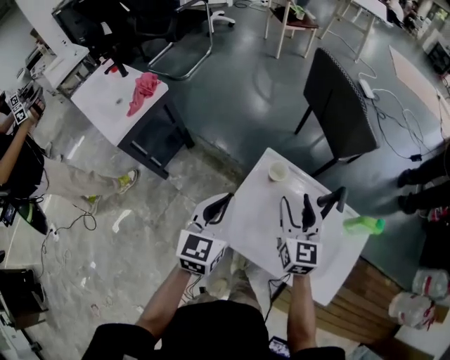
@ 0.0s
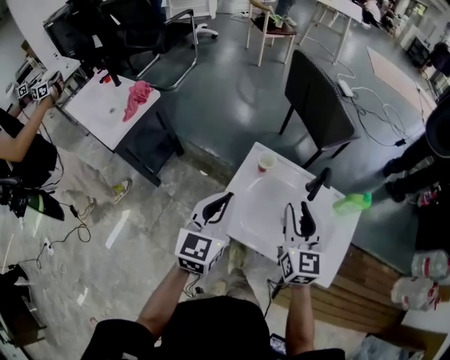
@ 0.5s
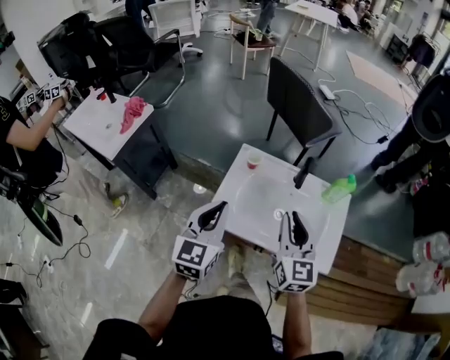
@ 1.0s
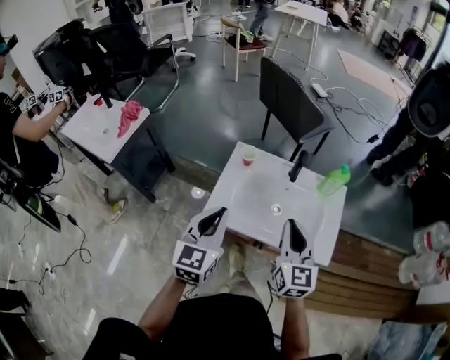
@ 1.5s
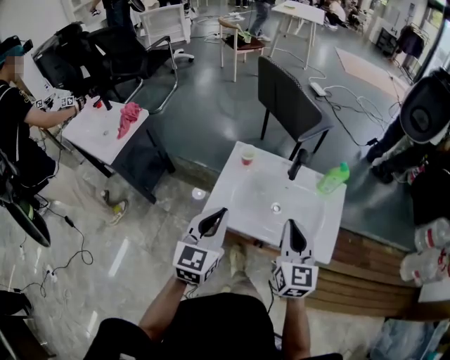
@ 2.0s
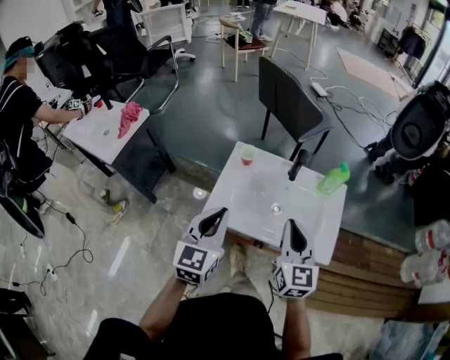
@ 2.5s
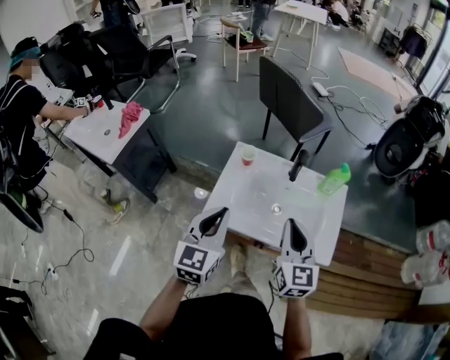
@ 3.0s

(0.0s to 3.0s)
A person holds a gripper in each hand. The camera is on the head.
0.0s - 1.5s: Both grippers move backward, about 20 cm. The right gripper closes its fingers.
1.5s - 3.0s: The grippers stay close to where they were, moving slightly.

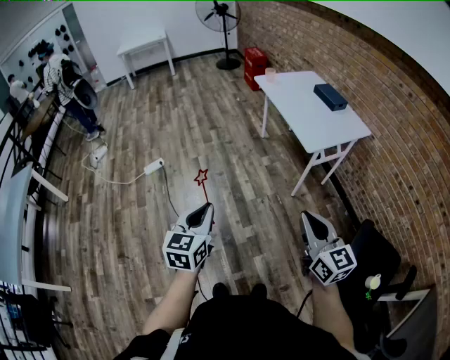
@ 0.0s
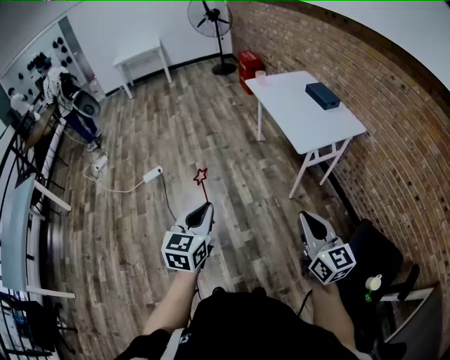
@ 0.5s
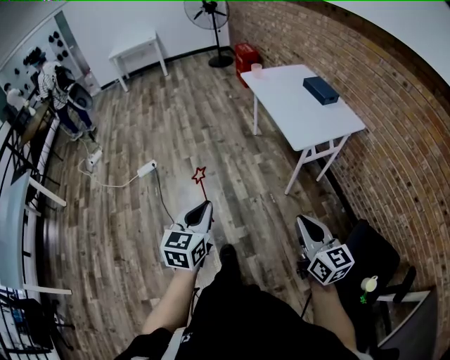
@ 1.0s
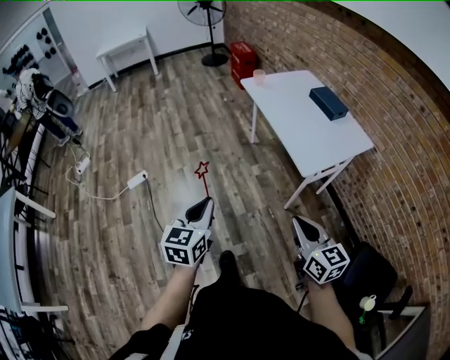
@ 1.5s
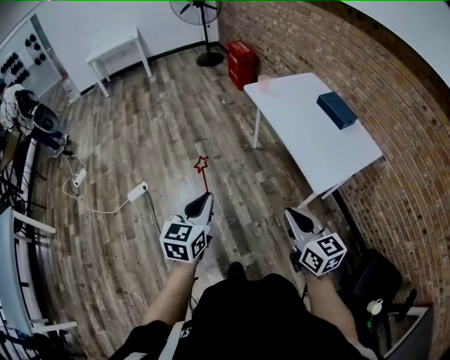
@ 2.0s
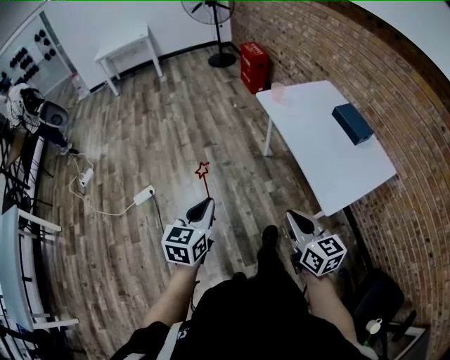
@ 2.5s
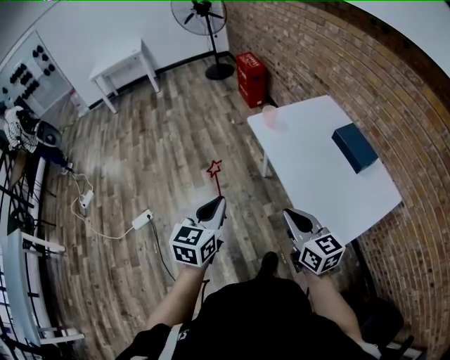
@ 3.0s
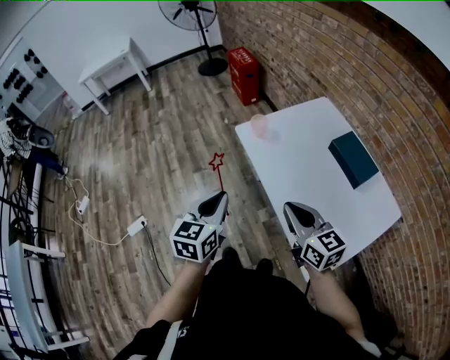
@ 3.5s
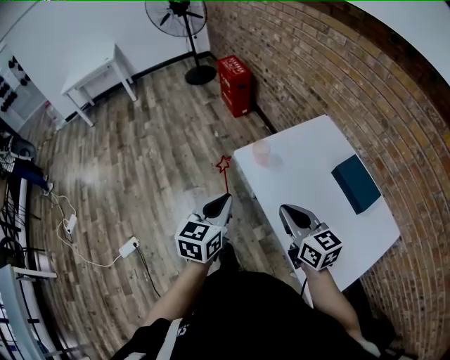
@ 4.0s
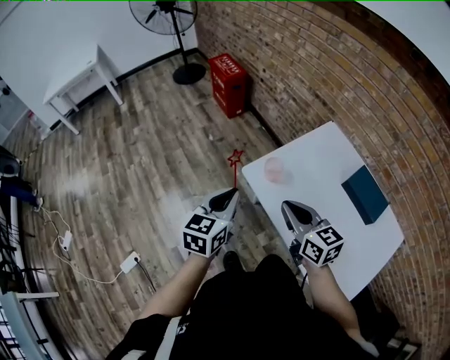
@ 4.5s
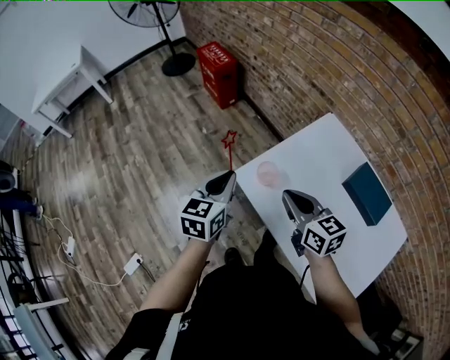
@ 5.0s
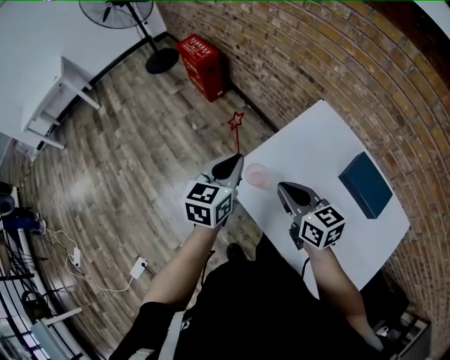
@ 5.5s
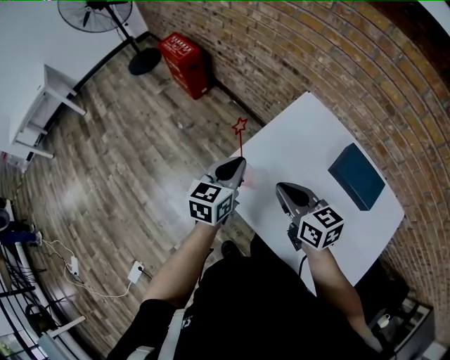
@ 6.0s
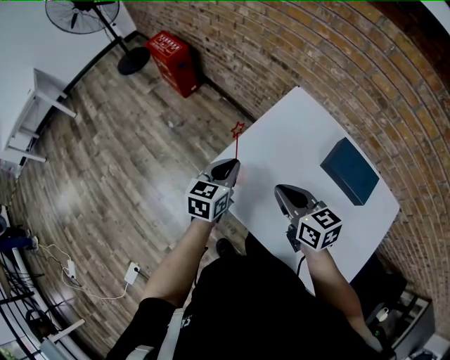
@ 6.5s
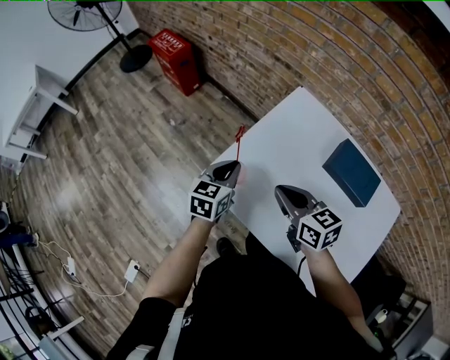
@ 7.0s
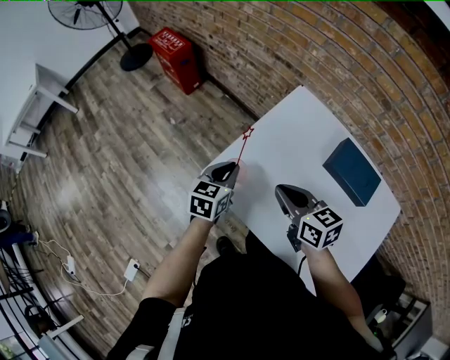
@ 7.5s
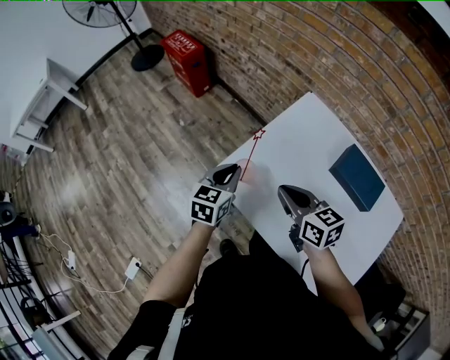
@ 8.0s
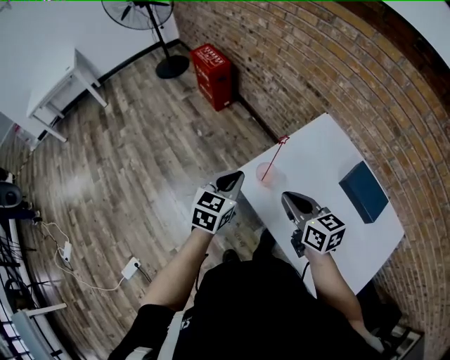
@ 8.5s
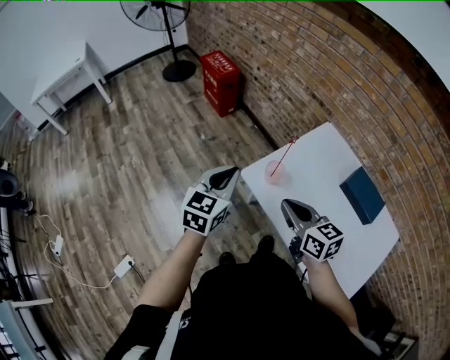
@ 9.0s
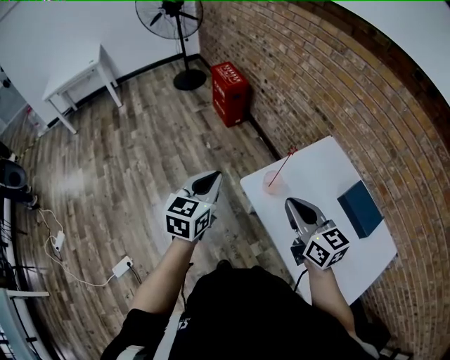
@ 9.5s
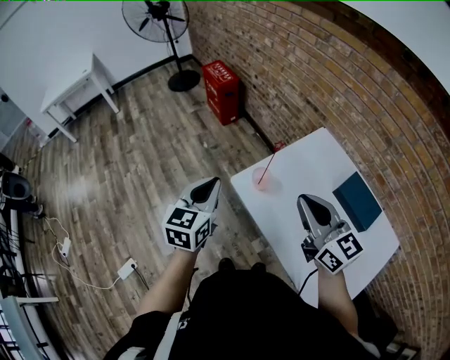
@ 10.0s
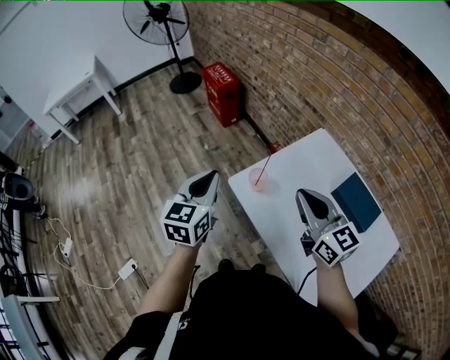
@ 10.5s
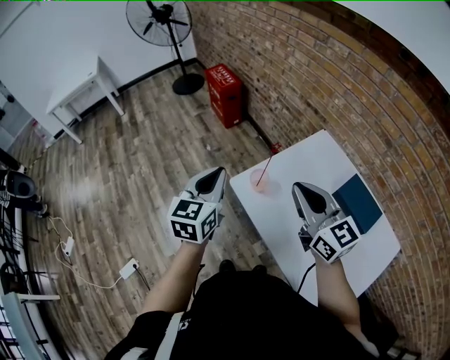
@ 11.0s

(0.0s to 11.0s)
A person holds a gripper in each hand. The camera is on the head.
0.0s - 2.0s: The two grippers go about 35 cm forward.
2.0s - 3.5s: The two grippers travel together, forward and to the right, approximately 40 cm.
3.5s - 5.5s: The grippers both shift forward by approximately 40 cm. The left gripper rotates approximately 20 degrees.
5.5s - 7.5s: The left gripper heads downward and to the right, covering roughly 15 cm. Meanwhile the right gripper shifts approximately 5 cm to the right.
7.5s - 9.0s: The left gripper is displaced to the left, upward and backward by roughly 25 cm. The right gripper is displaced to the left and backward by some 15 cm.
9.0s - 11.0s: The right gripper travels upward and to the right by approximately 15 cm, and swivels roughly 20 degrees. The left gripper shifts some 5 cm upward.

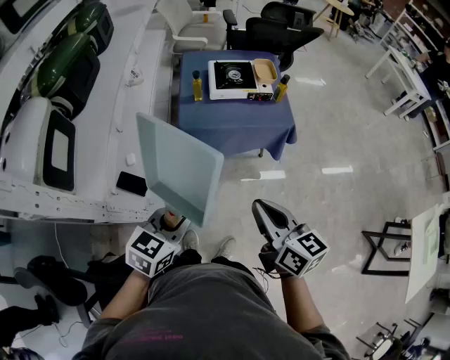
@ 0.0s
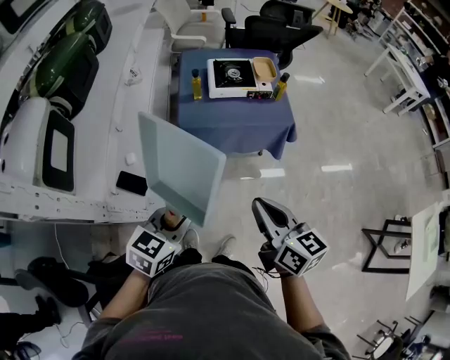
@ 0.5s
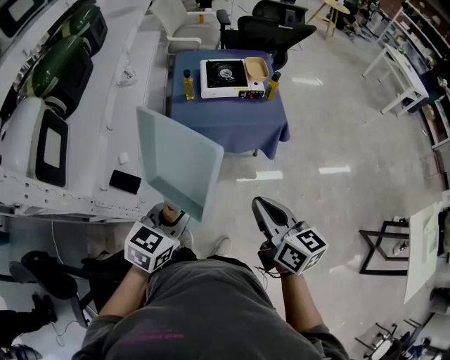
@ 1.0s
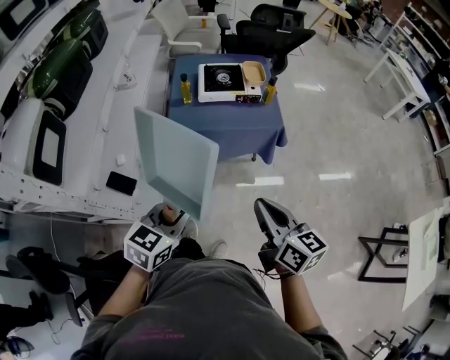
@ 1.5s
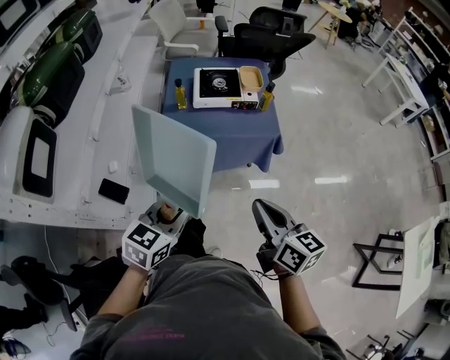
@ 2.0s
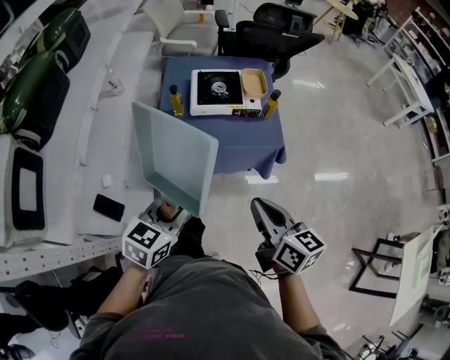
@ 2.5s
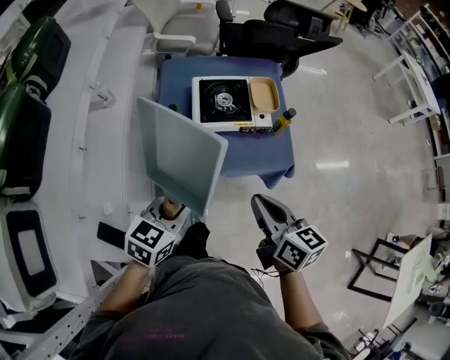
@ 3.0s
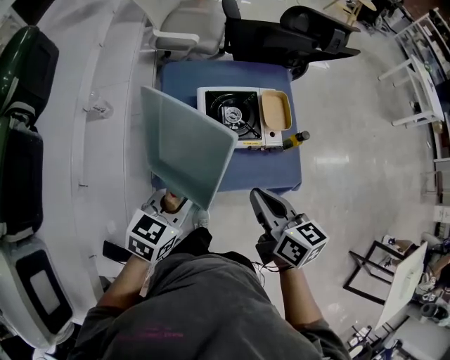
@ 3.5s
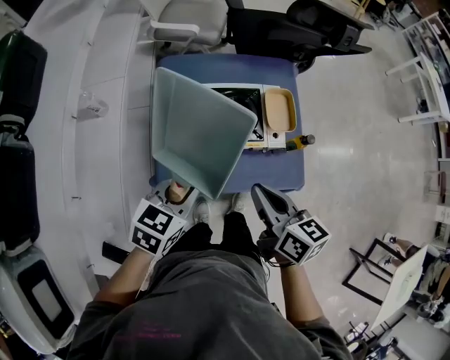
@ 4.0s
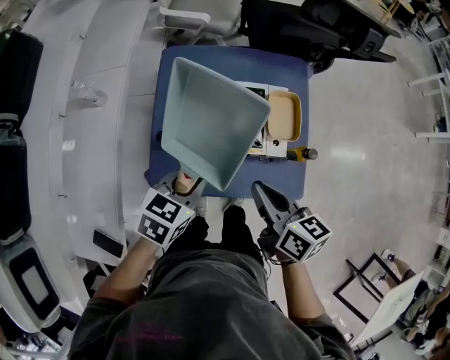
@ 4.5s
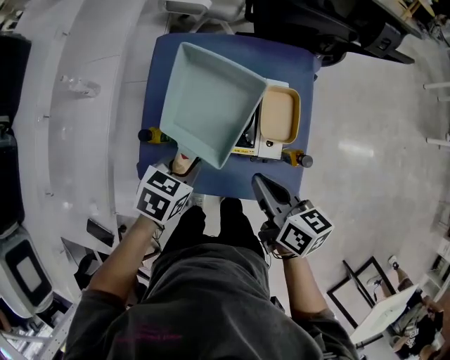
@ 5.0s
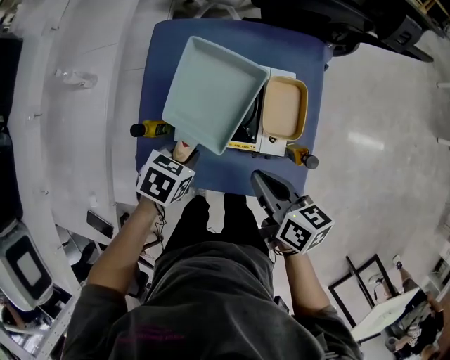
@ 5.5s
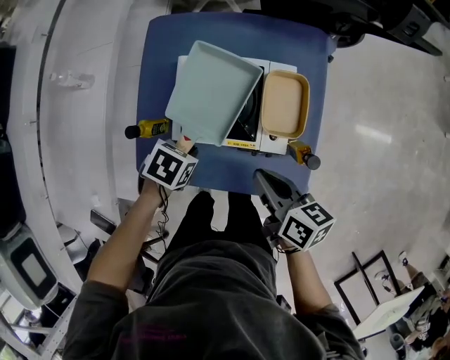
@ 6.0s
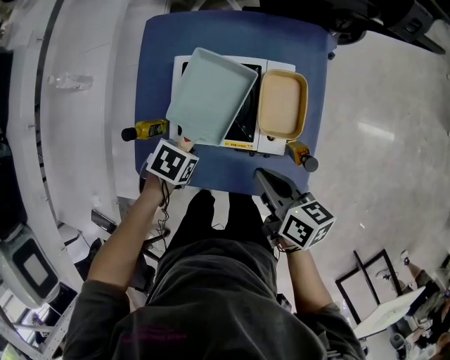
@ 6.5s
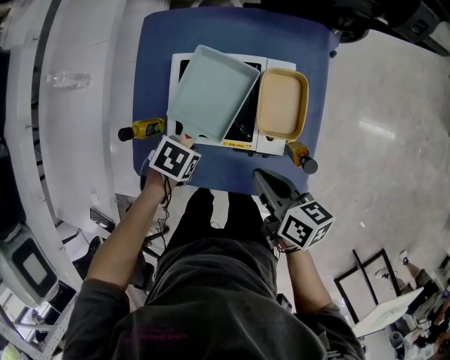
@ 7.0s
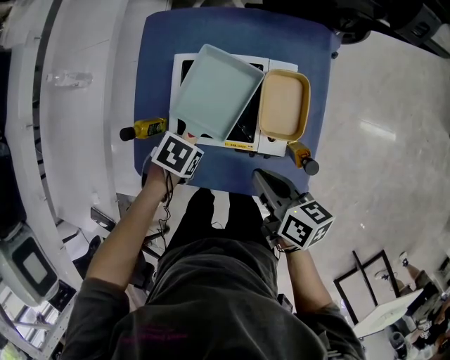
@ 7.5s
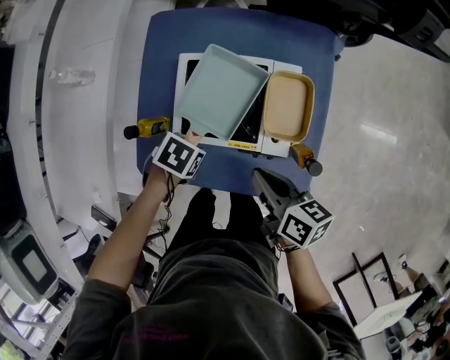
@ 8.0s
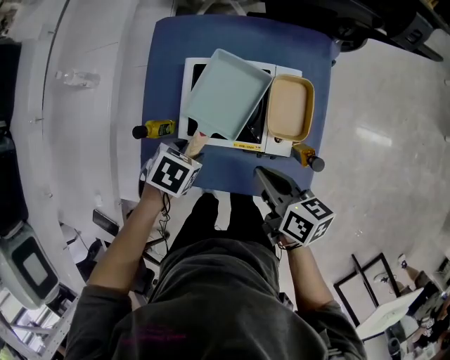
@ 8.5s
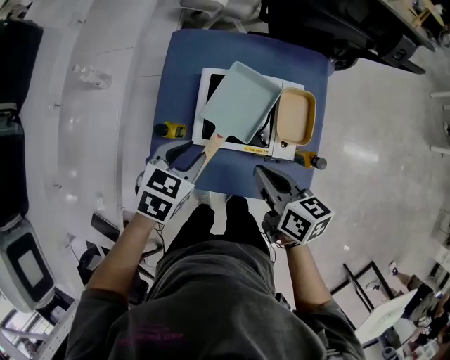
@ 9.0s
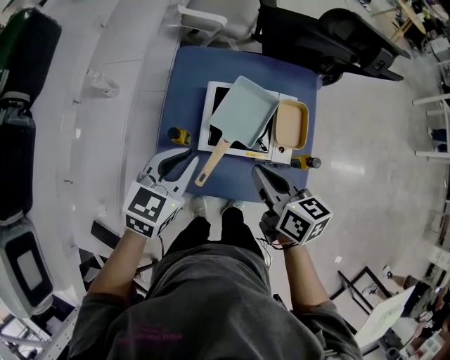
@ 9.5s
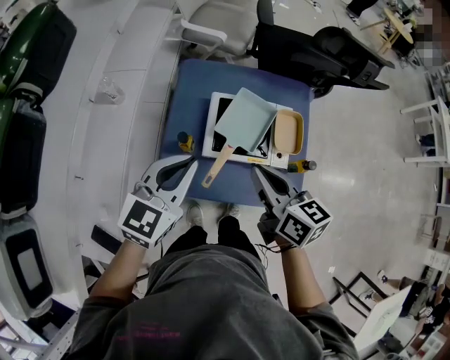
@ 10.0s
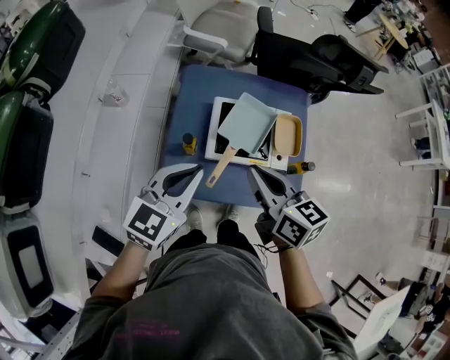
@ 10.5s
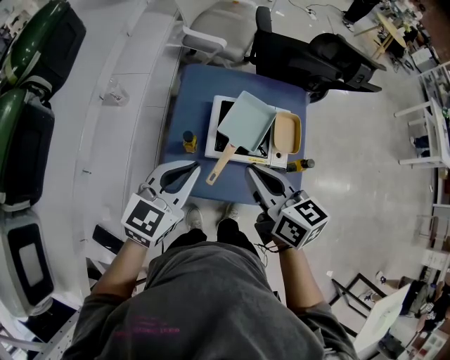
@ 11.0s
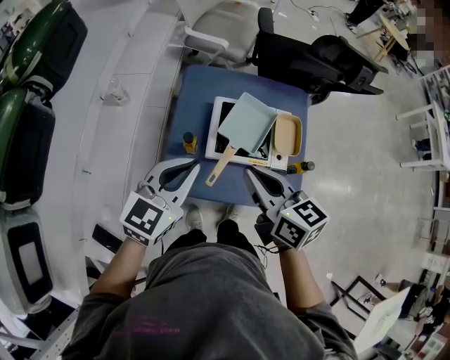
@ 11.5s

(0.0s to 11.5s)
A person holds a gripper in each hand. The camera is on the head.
0.0s - 2.0s: The two grippers go approximately 10 cm to the right and forward.
2.0s - 4.0s: The pair of grippers is taken forward, about 40 cm.
4.0s - 6.0s: The grippers both shift downward by about 20 cm. The left gripper angles its fingers downward, by approximately 40 degrees, while the right gripper turns by roughly 20 degrees.
6.0s - 7.5s: The grippers make only small movements.
7.5s - 9.5s: The right gripper travels upward by approximately 15 cm, while the left gripper travels upward by about 25 cm, angles its fingers upward, by approximately 50 degrees, and opens, then closes again.
9.5s - 11.5s: The left gripper goes some 10 cm upward. The right gripper heads upward and to the left, covering approximately 10 cm.

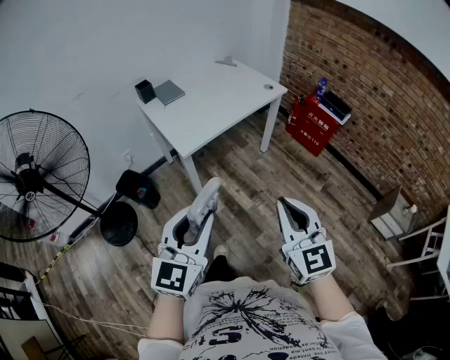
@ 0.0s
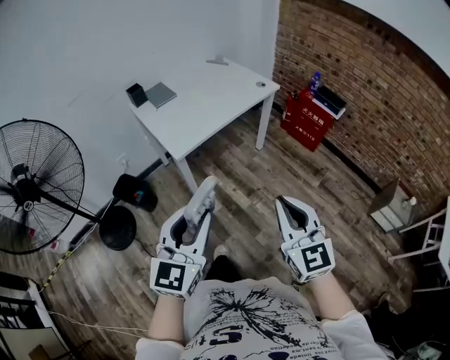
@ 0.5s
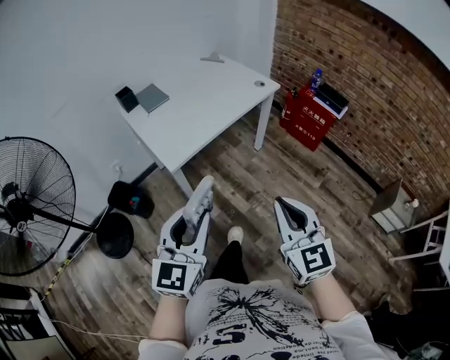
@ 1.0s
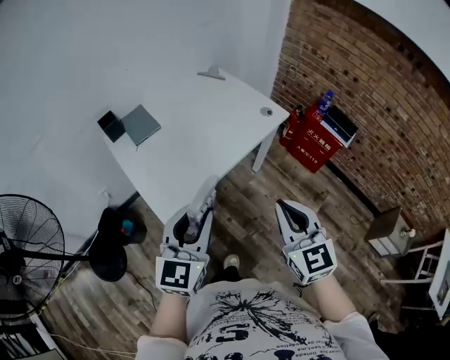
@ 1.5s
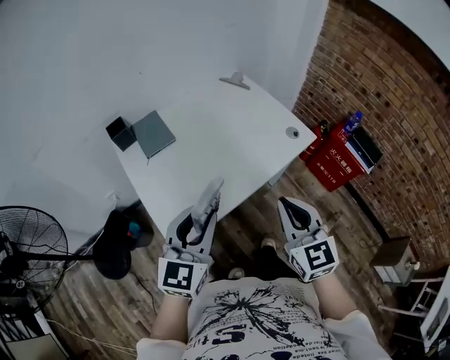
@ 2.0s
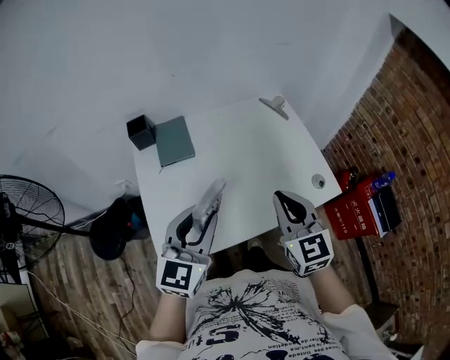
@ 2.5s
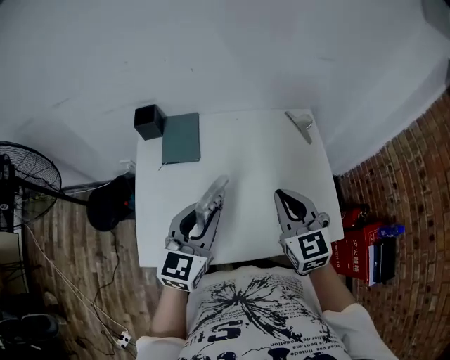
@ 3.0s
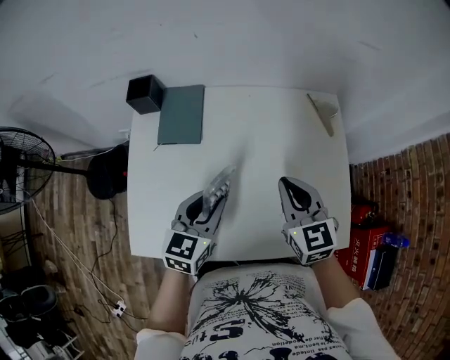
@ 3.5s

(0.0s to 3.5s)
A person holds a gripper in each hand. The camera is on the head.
0.0s - 2.0s: Both grippers are carried forward, some 50 cm.
2.0s - 3.5s: The left gripper moves approximately 35 cm, and turns by roughly 40 degrees; the right gripper changes place by some 40 cm, and rotates roughly 40 degrees.
